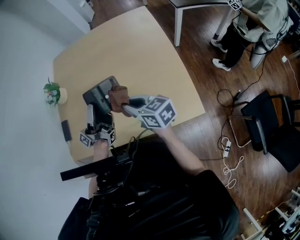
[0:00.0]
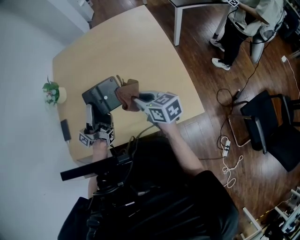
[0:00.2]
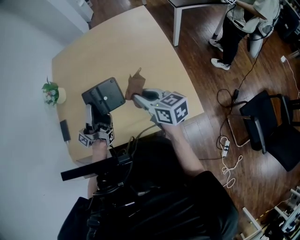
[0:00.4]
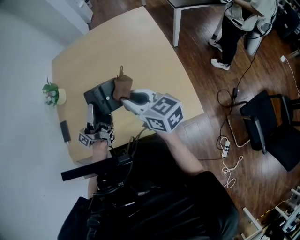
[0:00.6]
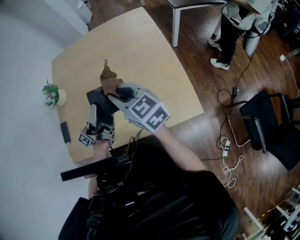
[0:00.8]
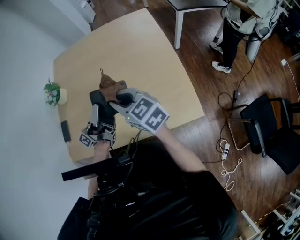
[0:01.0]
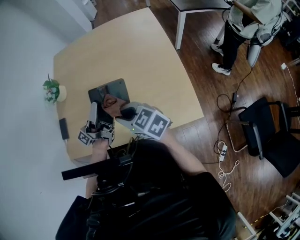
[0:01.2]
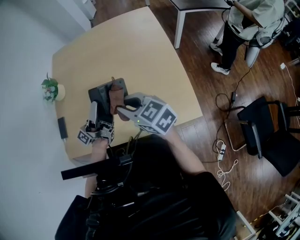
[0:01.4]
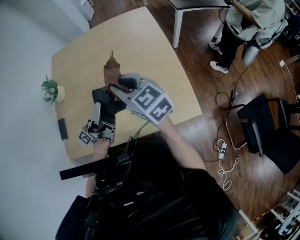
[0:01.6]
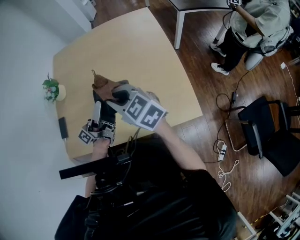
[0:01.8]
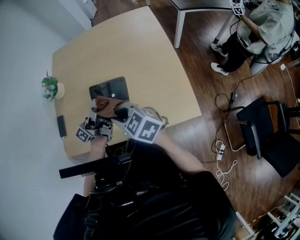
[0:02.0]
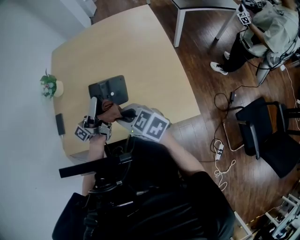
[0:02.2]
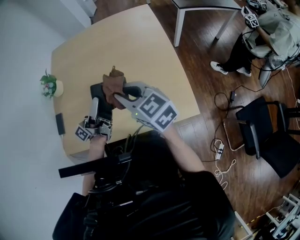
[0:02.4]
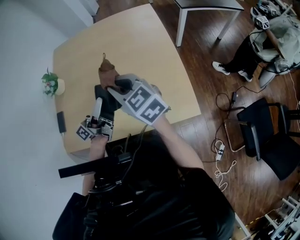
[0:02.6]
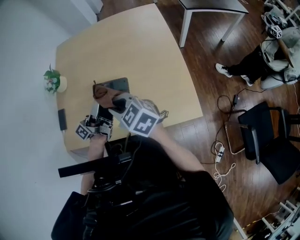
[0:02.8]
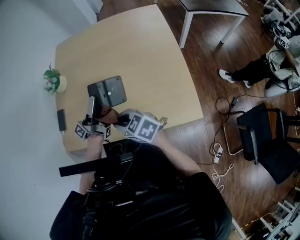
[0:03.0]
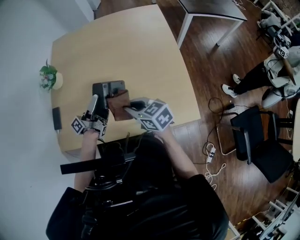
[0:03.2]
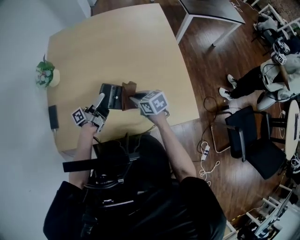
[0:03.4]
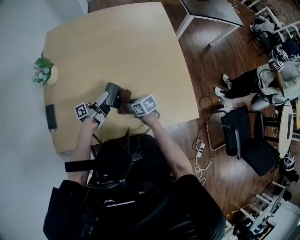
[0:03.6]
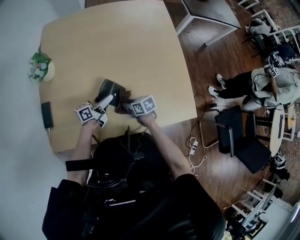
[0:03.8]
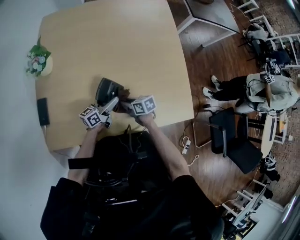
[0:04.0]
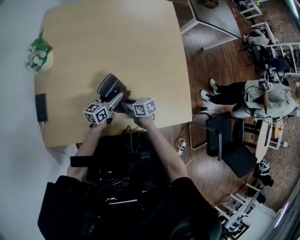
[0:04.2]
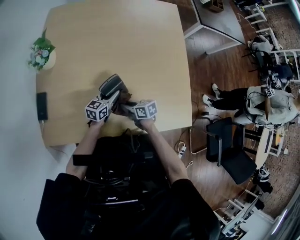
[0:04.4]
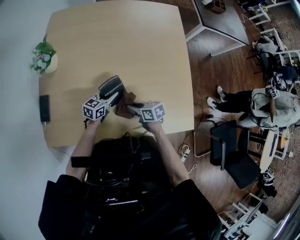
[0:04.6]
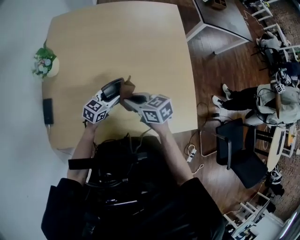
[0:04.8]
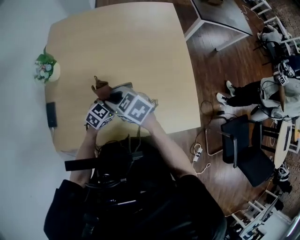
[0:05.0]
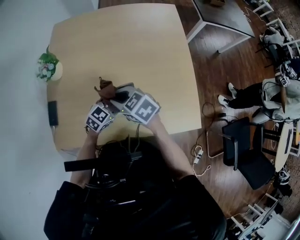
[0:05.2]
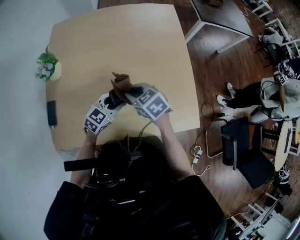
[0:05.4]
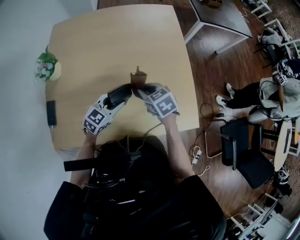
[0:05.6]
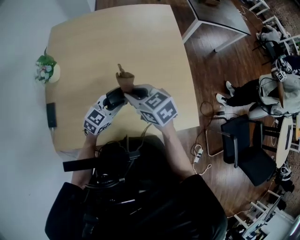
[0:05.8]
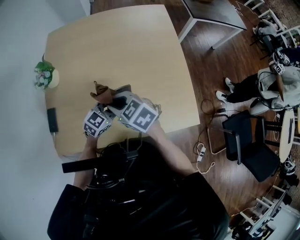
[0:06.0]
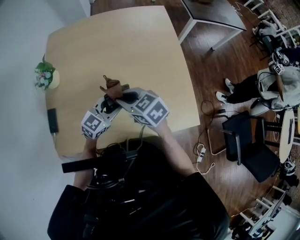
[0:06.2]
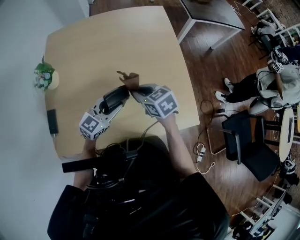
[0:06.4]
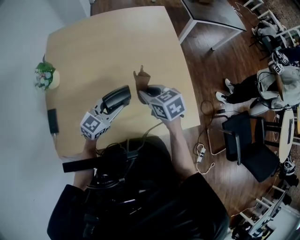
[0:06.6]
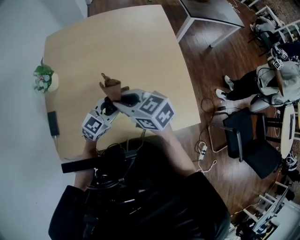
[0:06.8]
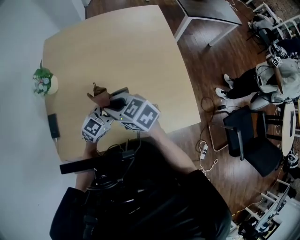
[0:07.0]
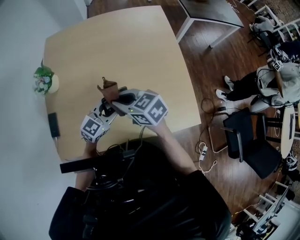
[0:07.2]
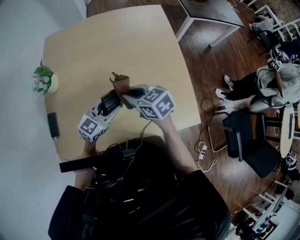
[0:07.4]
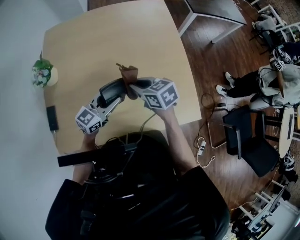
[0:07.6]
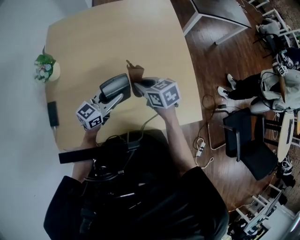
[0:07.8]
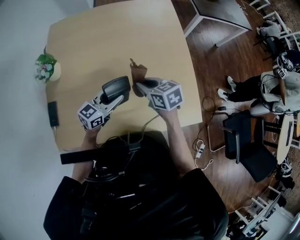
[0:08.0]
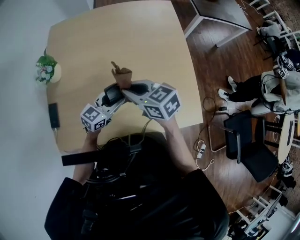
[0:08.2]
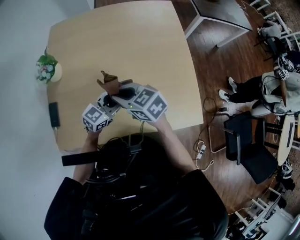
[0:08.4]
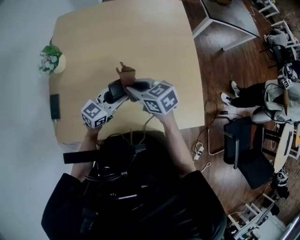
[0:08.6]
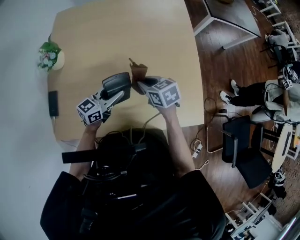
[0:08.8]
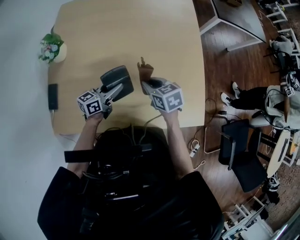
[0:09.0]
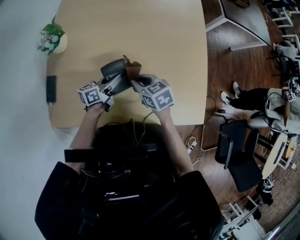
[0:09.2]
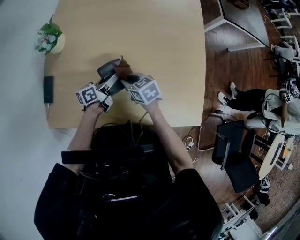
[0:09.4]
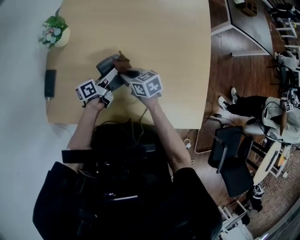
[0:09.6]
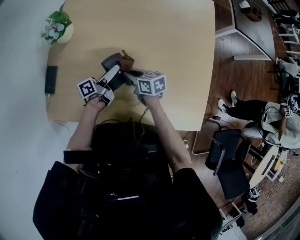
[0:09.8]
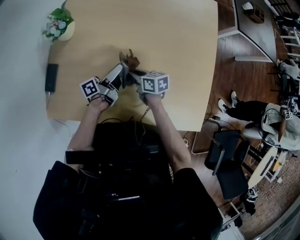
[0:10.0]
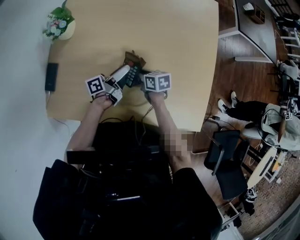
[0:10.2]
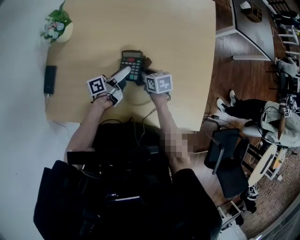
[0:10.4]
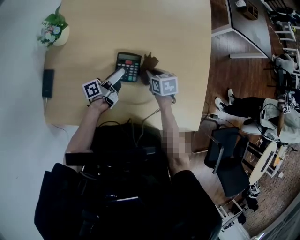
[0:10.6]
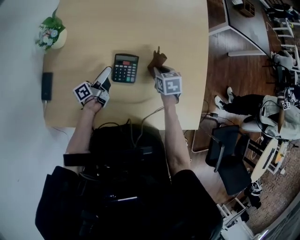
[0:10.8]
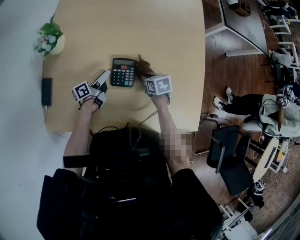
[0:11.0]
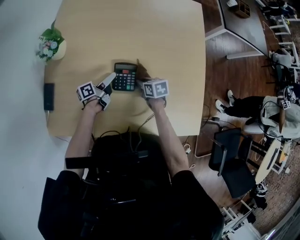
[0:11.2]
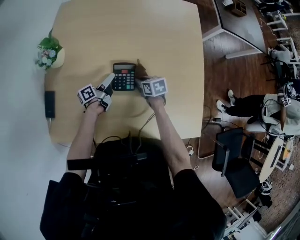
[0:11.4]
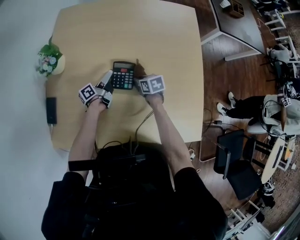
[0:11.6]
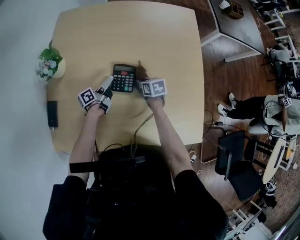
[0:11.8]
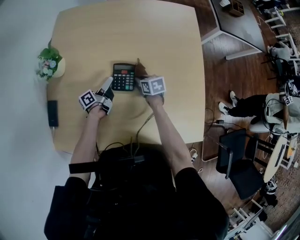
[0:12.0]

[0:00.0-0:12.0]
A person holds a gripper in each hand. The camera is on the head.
0:00.0 to 0:01.6: The right gripper goes up and down, about 10 cm each way, reversing 2 times, and rotates about 30 degrees.
0:01.6 to 0:03.0: The right gripper goes up and down, roughly 15 cm each way, reversing 2 times, and turns by roughly 30 degrees.
0:03.0 to 0:04.4: The right gripper is displaced downward by about 20 cm, and turns by about 40 degrees.
0:04.4 to 0:06.0: The right gripper swings up and down, about 25 cm each way, with 2 reversals, and swivels approximately 40 degrees.
0:06.0 to 0:07.6: The right gripper goes up and down, approximately 10 cm each way, reversing 2 times, and turns by some 20 degrees.
0:07.6 to 0:09.0: The right gripper heads downward, covering some 5 cm.
0:09.0 to 0:10.4: The right gripper moves downward, approximately 15 cm.
0:10.4 to 0:12.0: The right gripper changes place by about 10 cm.

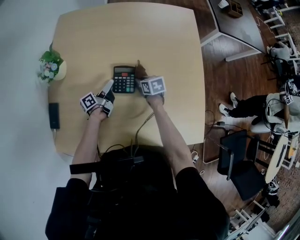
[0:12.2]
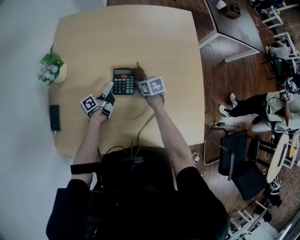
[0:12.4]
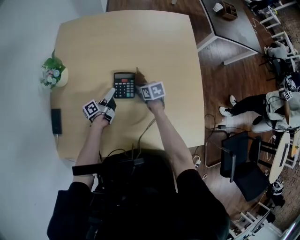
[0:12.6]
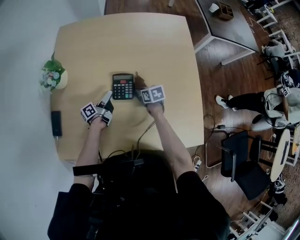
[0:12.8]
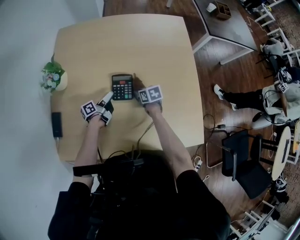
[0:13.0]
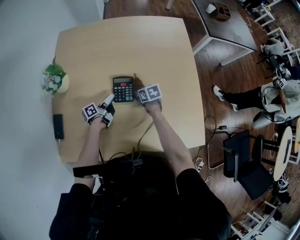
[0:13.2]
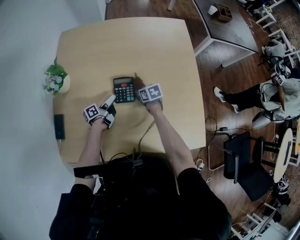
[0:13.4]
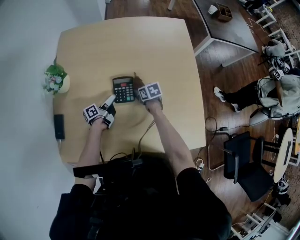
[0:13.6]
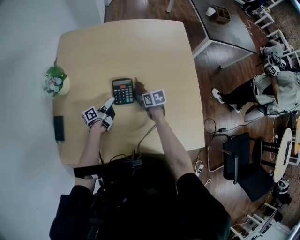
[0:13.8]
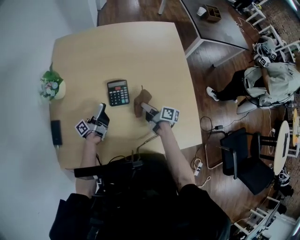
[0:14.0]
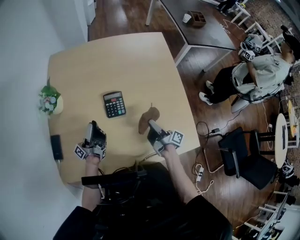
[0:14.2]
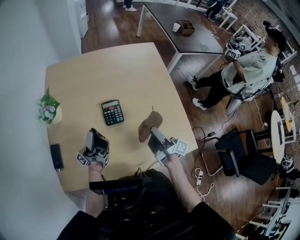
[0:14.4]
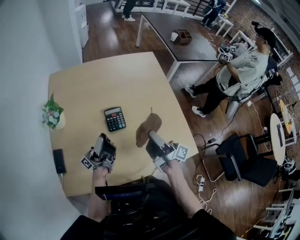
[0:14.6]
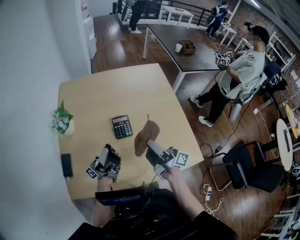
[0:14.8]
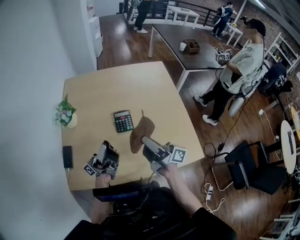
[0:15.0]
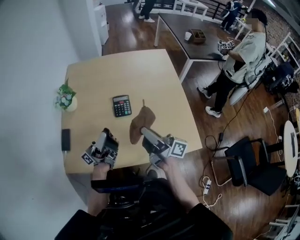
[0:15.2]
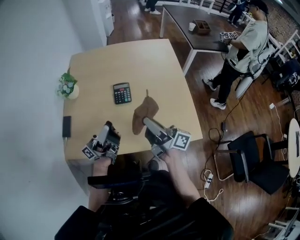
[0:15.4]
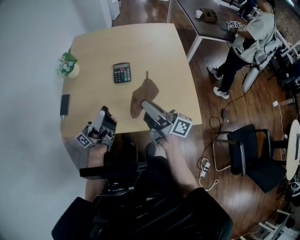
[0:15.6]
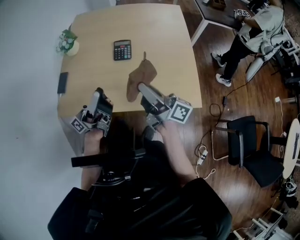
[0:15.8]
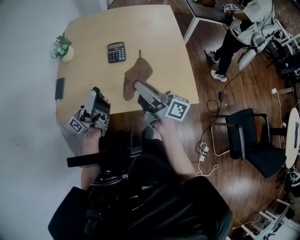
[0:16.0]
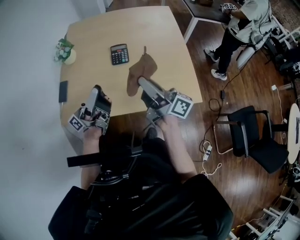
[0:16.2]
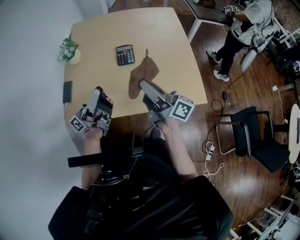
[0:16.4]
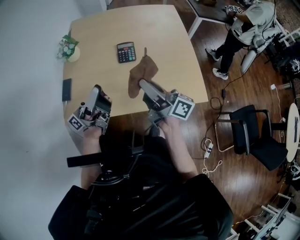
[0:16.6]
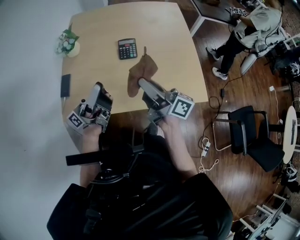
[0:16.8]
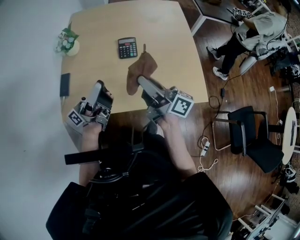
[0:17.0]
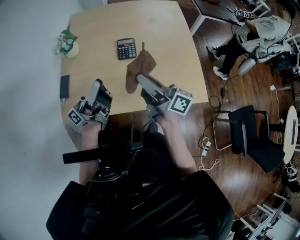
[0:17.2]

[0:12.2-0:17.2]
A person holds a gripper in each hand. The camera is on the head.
0:13.8 to 0:15.6: The right gripper moves upward, some 35 cm, and tilts its fingers approximately 70 degrees upward.
0:15.6 to 0:17.2: The right gripper shifts by roughly 10 cm.

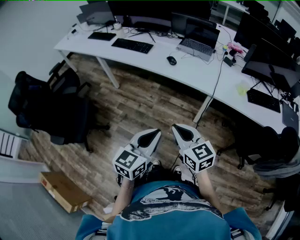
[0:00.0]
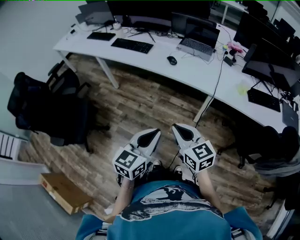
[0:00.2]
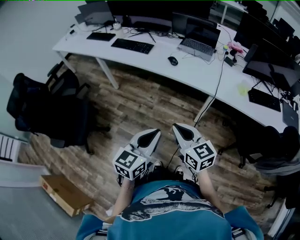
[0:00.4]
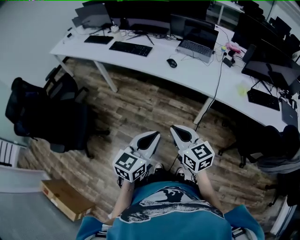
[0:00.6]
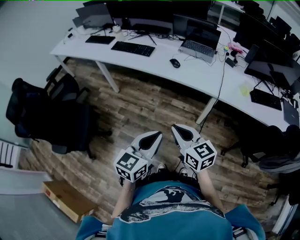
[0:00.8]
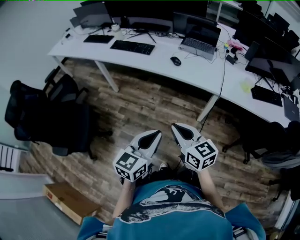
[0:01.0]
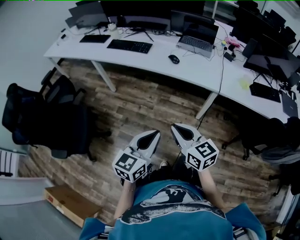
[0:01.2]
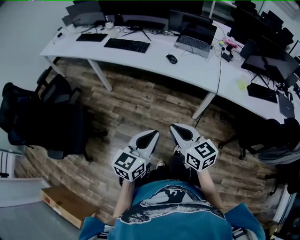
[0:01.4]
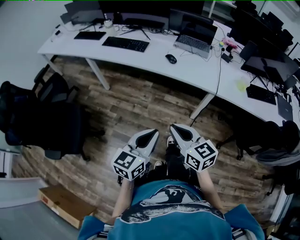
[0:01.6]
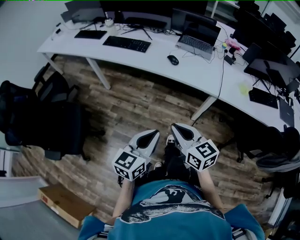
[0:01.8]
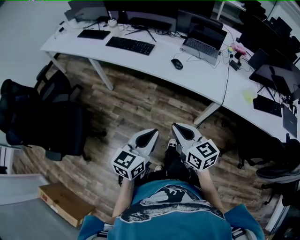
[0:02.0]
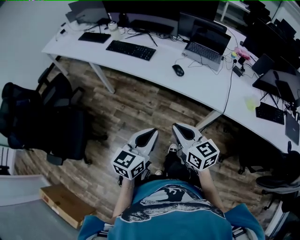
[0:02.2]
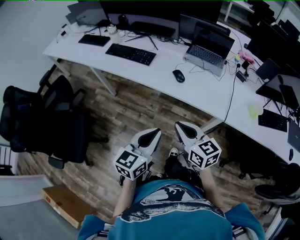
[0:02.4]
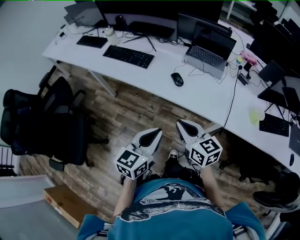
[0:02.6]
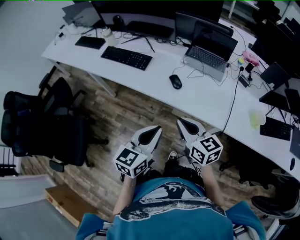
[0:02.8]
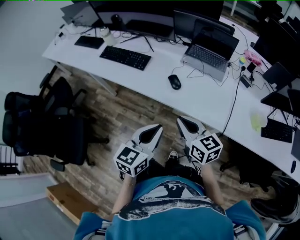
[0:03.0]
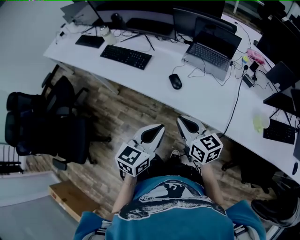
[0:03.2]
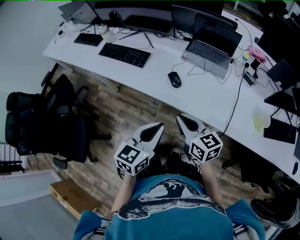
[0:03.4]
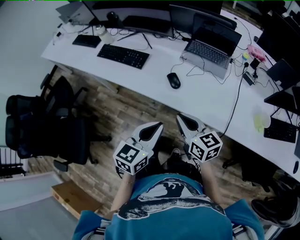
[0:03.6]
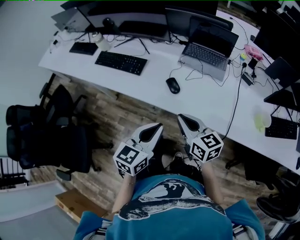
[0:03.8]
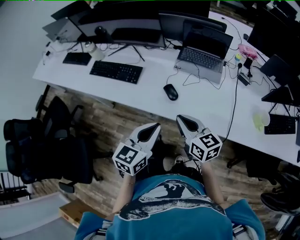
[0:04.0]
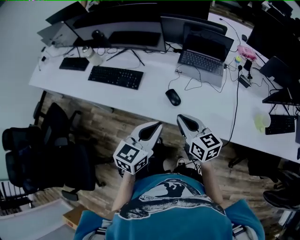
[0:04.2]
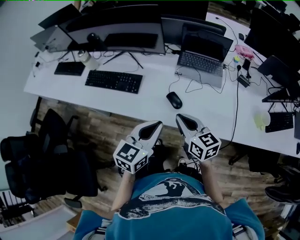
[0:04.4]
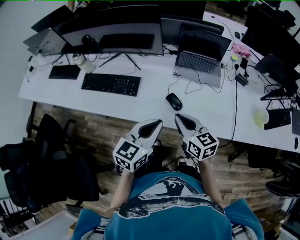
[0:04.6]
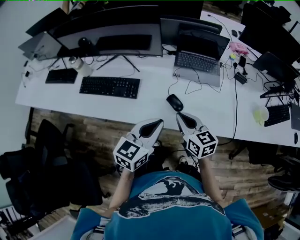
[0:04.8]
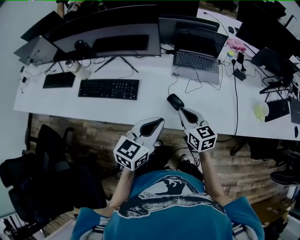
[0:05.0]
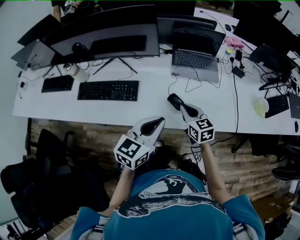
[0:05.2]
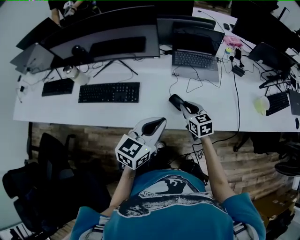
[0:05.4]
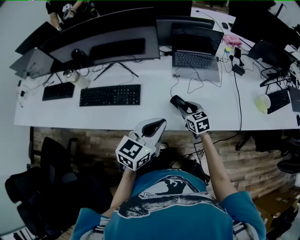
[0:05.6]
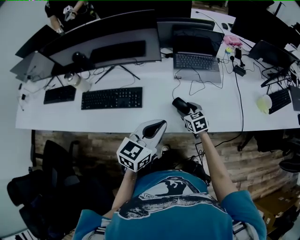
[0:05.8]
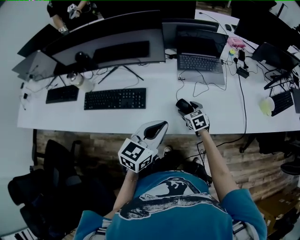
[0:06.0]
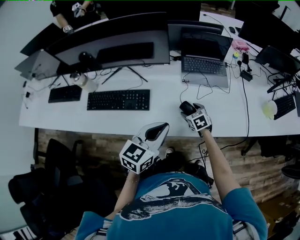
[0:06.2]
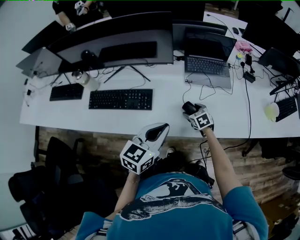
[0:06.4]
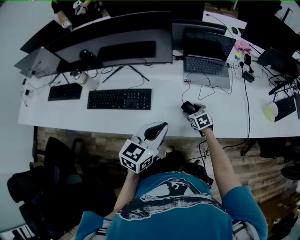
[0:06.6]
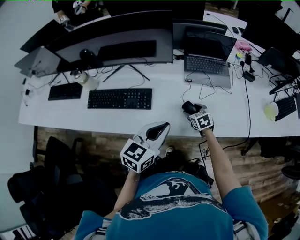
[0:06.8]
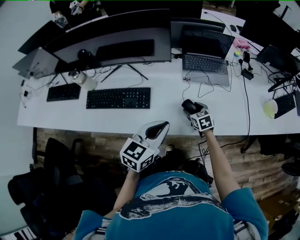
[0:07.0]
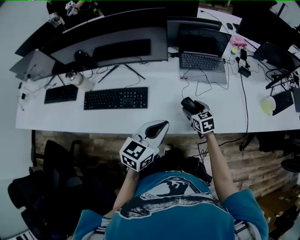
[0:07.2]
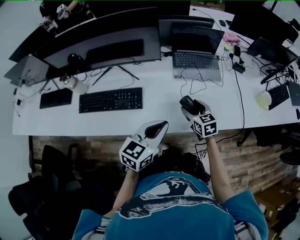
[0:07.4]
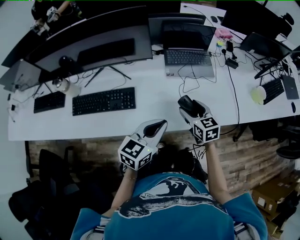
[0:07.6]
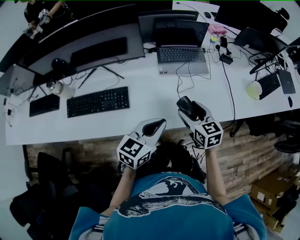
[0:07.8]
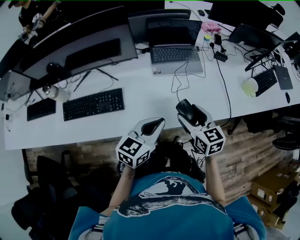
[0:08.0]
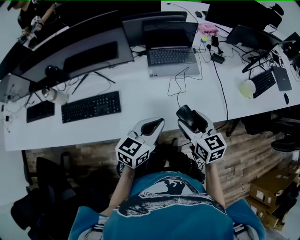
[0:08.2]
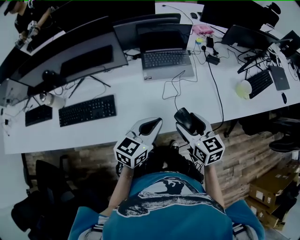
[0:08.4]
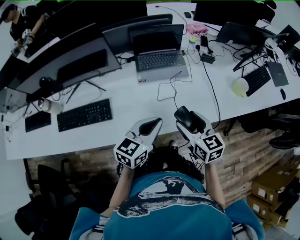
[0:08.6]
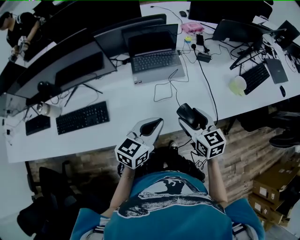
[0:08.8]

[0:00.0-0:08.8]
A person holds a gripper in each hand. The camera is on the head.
0:00.0 to 0:01.4: Both grippers travel together to the left, about 10 cm.
0:01.4 to 0:03.0: The two grippers go some 30 cm forward.
0:03.0 to 0:04.4: The grippers both shift forward by about 15 cm.
0:04.4 to 0:05.8: The left gripper shifts approximately 5 cm to the left. The right gripper heads downward and forward, covering some 20 cm, swivels some 30 degrees, and opens up.
0:05.8 to 0:07.4: The right gripper moves upward, some 5 cm.
0:07.4 to 0:08.8: The right gripper moves to the right and upward, about 20 cm; the left gripper goes roughly 15 cm to the right and forward.
